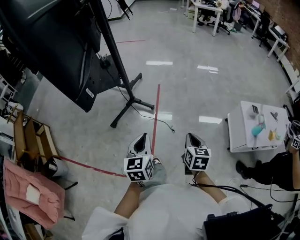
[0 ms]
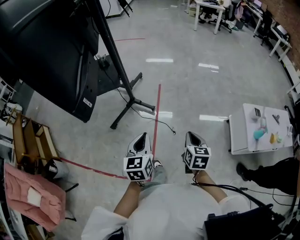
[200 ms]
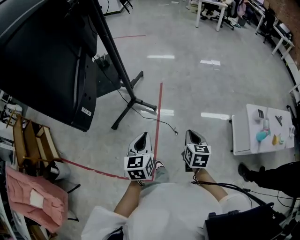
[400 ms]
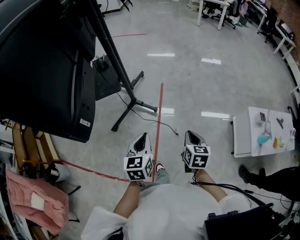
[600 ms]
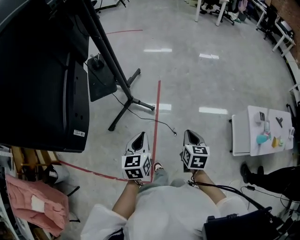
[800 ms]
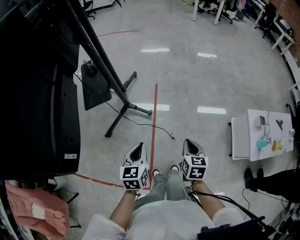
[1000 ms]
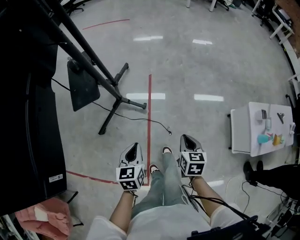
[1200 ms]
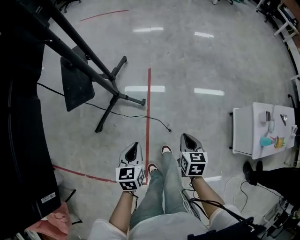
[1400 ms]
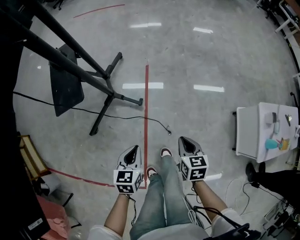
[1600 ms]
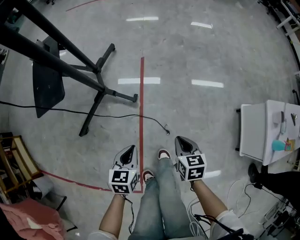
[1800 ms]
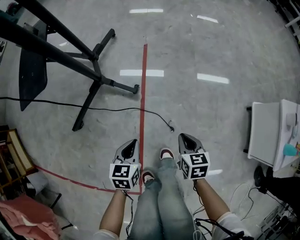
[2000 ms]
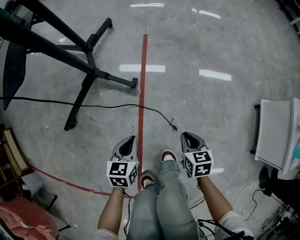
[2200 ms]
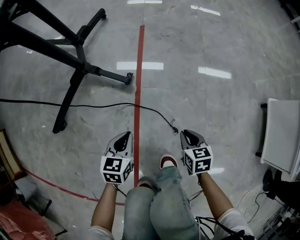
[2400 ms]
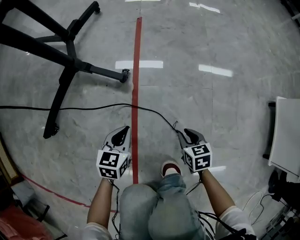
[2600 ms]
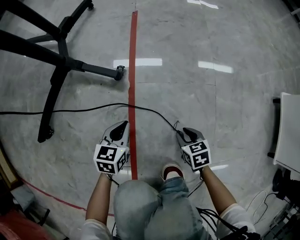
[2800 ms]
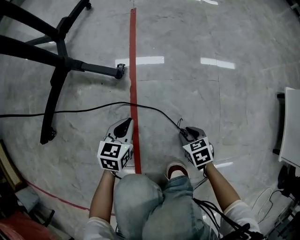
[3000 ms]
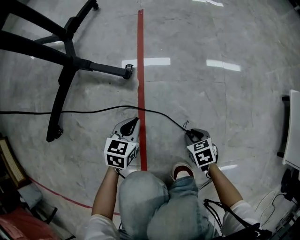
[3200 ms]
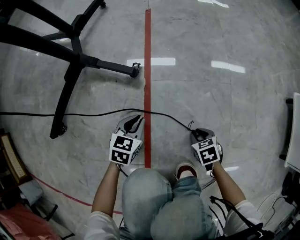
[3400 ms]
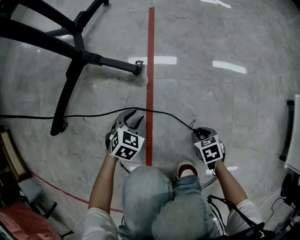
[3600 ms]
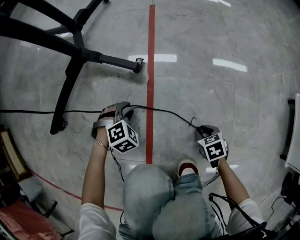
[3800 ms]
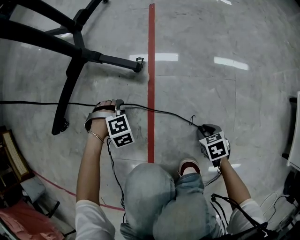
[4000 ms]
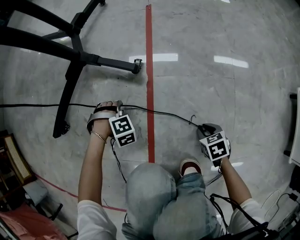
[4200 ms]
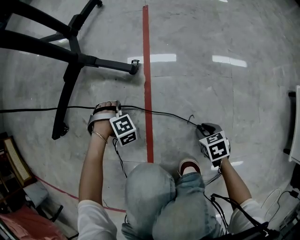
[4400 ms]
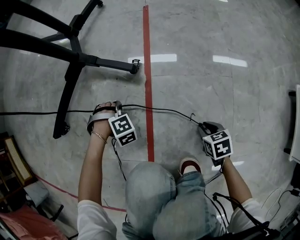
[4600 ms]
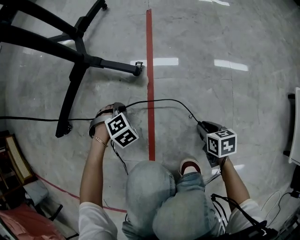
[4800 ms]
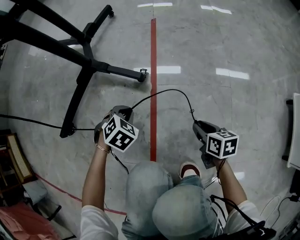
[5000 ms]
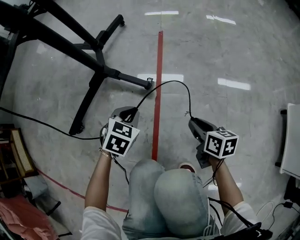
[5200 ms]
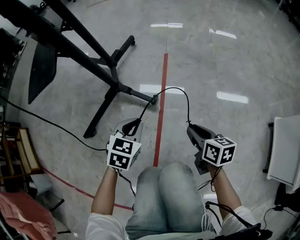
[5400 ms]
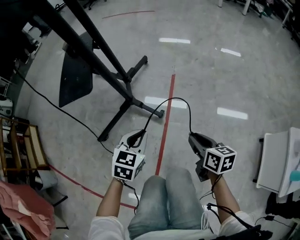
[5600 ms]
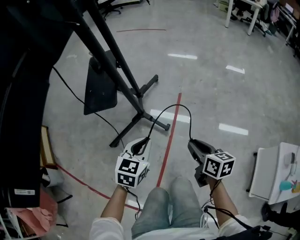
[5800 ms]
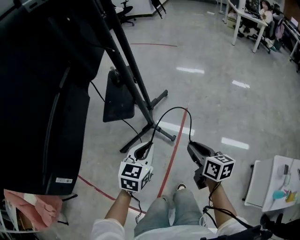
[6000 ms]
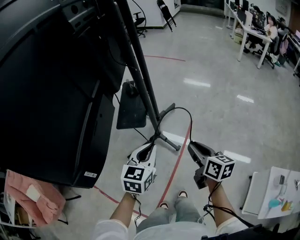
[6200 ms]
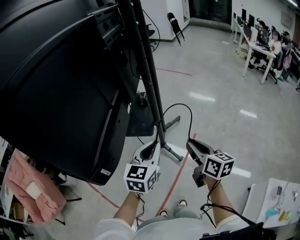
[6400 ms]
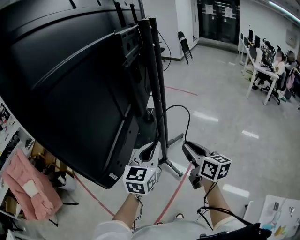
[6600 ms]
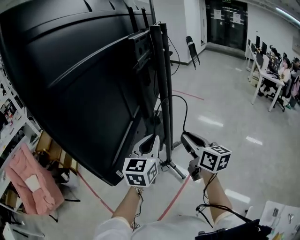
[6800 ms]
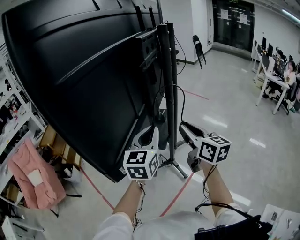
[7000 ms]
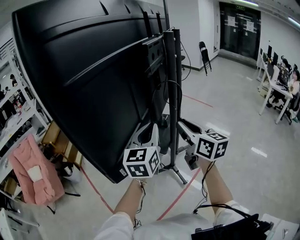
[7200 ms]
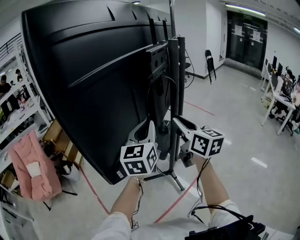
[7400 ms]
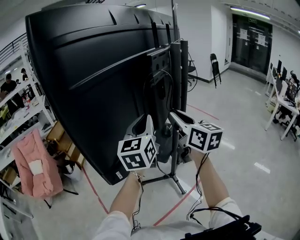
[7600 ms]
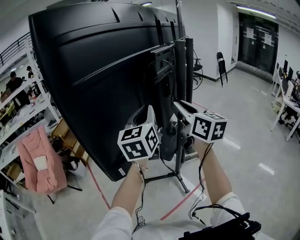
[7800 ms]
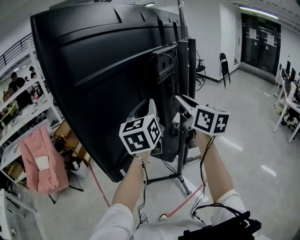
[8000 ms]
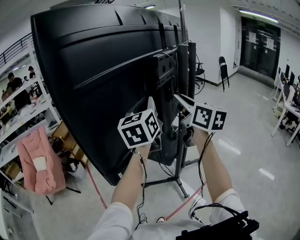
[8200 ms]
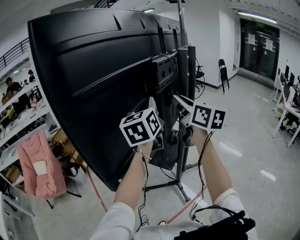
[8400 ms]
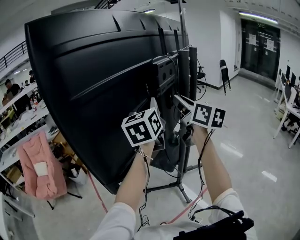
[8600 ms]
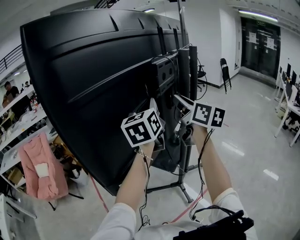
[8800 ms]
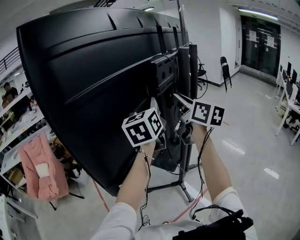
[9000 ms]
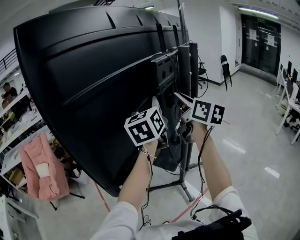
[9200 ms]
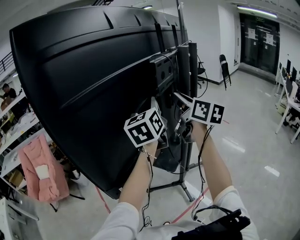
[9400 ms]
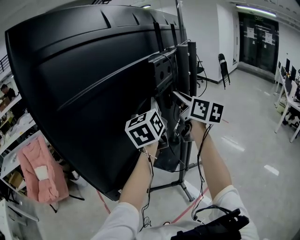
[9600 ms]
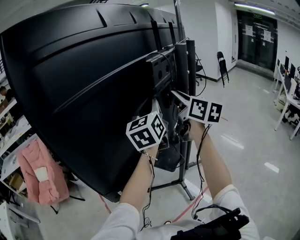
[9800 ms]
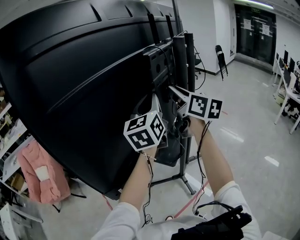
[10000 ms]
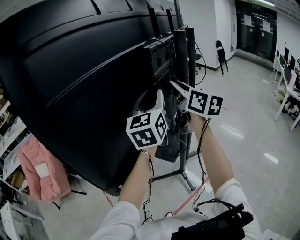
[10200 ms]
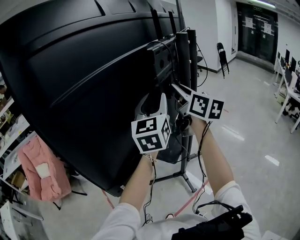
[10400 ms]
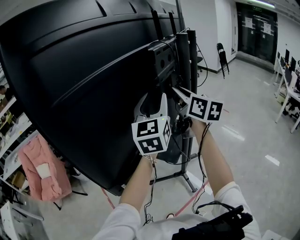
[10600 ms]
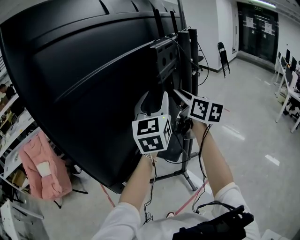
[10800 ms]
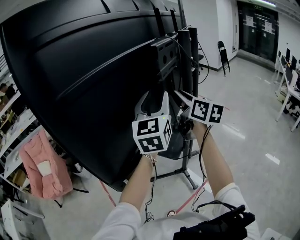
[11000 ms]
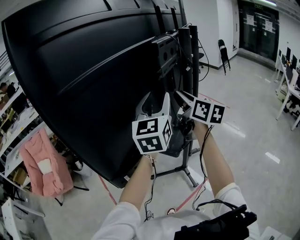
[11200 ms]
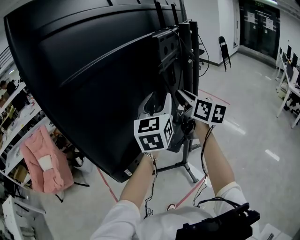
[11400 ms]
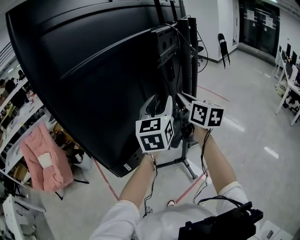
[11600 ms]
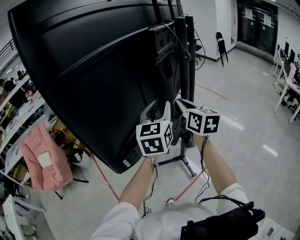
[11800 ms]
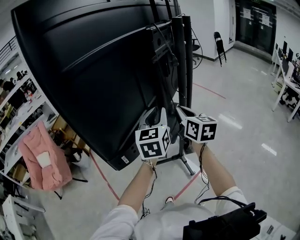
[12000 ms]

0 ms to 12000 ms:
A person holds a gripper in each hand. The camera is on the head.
0 ms to 1600 ms: Both grippers move forward and downward, approximately 40 cm. The left gripper changes its angle by about 20 degrees.
1600 ms to 3000 ms: The two grippers go some 60 cm downward. The right gripper rotates roughly 30 degrees, and opens up.
3000 ms to 4400 ms: The left gripper changes place by about 15 cm, twists roughly 70 degrees clockwise, seen from behind, and opens, then closes again.
4400 ms to 6000 ms: The two grippers go some 80 cm upward. The left gripper rotates around the line of its fingers by about 80 degrees, counterclockwise from behind, while the right gripper tips its fingers upward by approximately 40 degrees.
6000 ms to 7600 ms: Both grippers travel together upward, about 50 cm. The right gripper changes its angle by about 50 degrees. Meanwhile the left gripper angles its fingers upward, by some 30 degrees.
7600 ms to 9000 ms: The grippers both shift forward and upward by roughly 10 cm.
9000 ms to 10400 ms: The left gripper opens.
10400 ms to 12000 ms: Both grippers move downward and backward, roughly 15 cm.

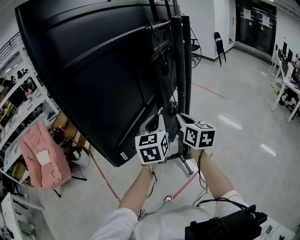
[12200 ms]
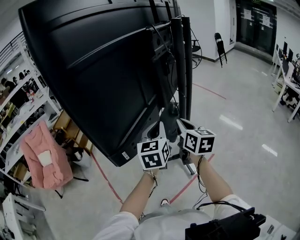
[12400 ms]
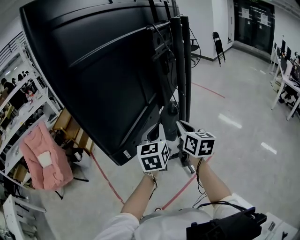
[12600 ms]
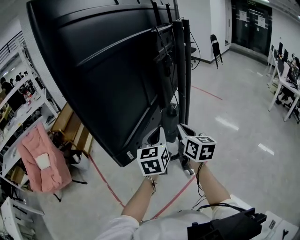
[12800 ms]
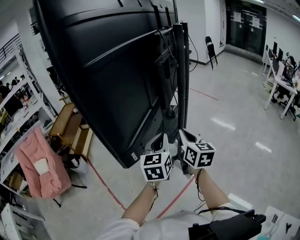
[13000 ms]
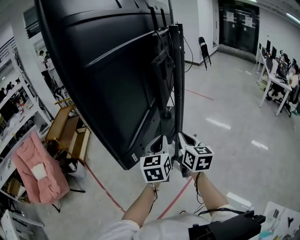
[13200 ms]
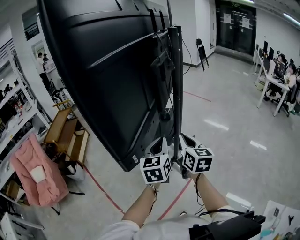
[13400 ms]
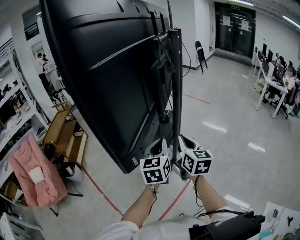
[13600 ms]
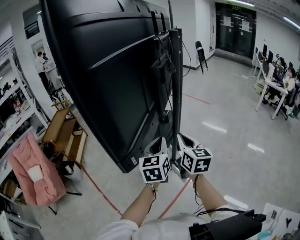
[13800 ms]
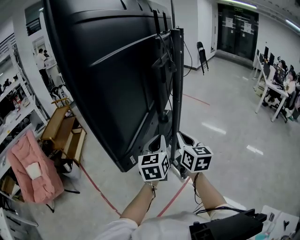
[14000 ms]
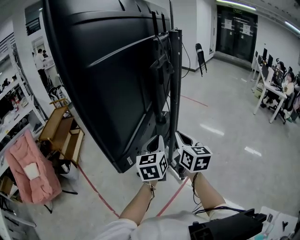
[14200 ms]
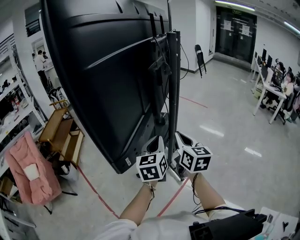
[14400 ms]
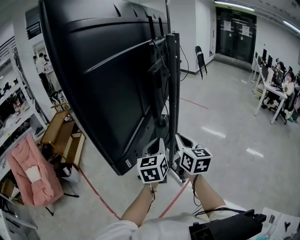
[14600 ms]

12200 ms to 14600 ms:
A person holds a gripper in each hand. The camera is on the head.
12200 ms to 13400 ms: The two grippers go approximately 10 cm backward.
13400 ms to 14600 ms: There are only small adjustments of the grippers.

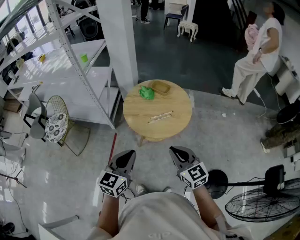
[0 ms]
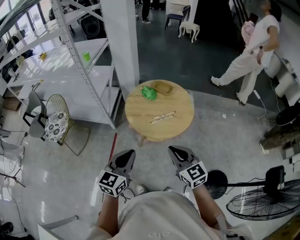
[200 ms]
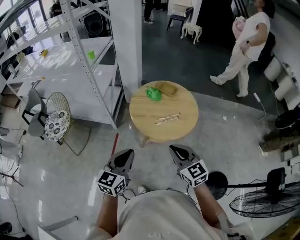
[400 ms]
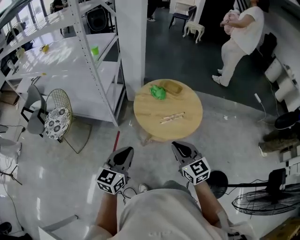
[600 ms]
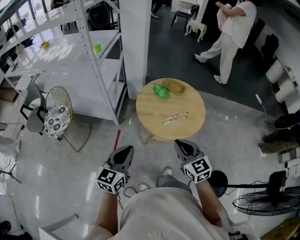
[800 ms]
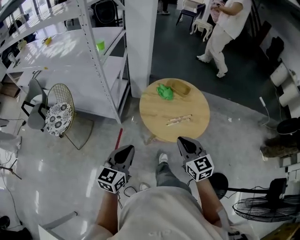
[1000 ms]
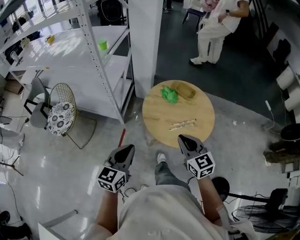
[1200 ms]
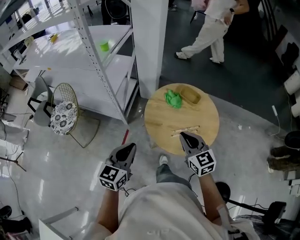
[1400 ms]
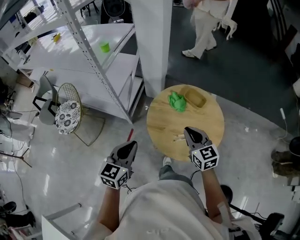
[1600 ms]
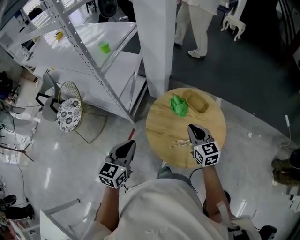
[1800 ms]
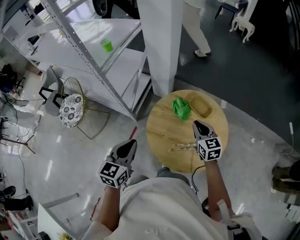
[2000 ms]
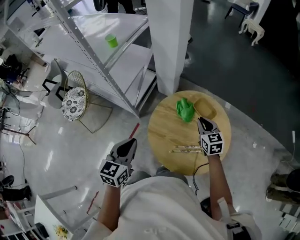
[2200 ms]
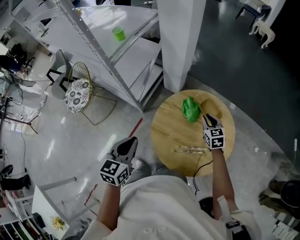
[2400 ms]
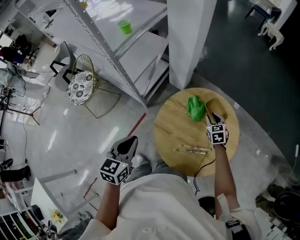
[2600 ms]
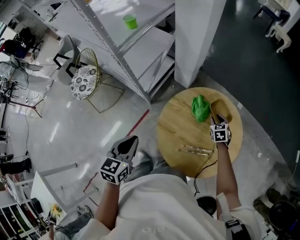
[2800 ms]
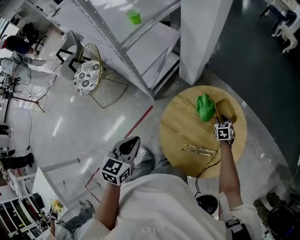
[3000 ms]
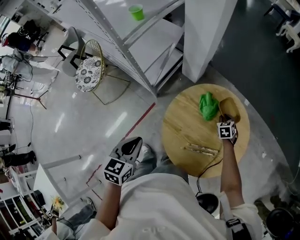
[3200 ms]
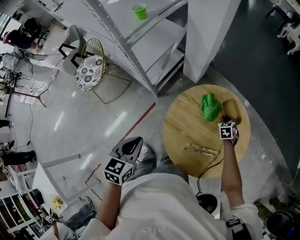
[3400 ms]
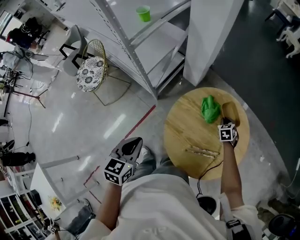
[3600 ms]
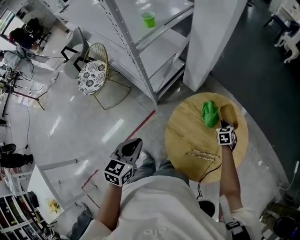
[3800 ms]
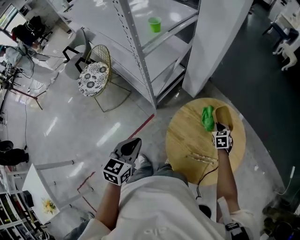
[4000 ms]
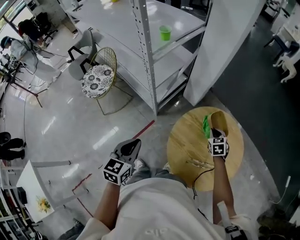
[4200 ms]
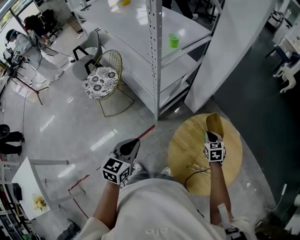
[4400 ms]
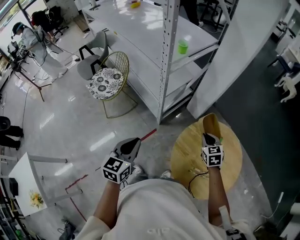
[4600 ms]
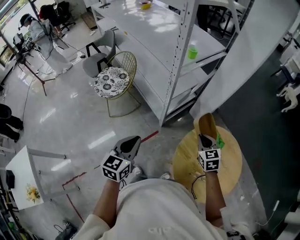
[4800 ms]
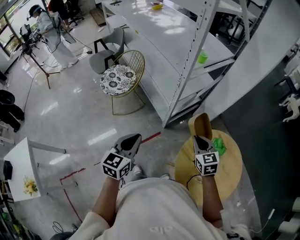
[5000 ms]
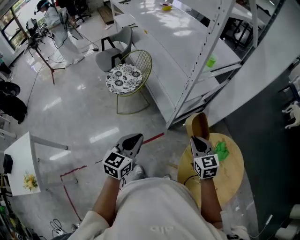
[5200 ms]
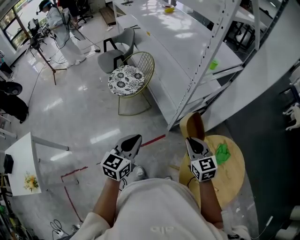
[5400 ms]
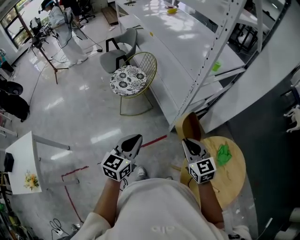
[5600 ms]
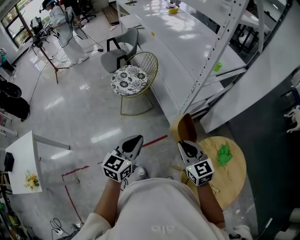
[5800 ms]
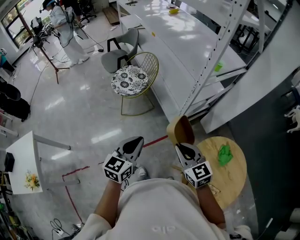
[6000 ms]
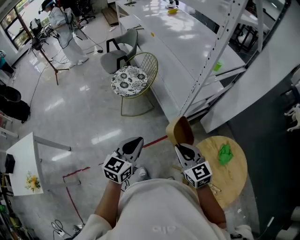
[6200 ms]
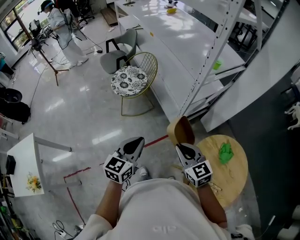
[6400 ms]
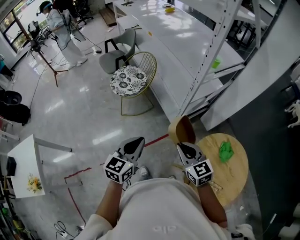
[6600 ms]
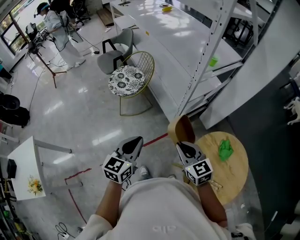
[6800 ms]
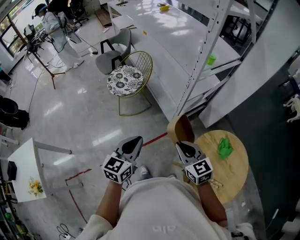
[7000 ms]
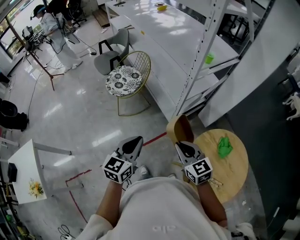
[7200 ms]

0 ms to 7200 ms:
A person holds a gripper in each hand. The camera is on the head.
0 ms to 1400 ms: Both grippers travel together forward and to the left, approximately 25 cm.
1400 ms to 2800 ms: The right gripper moves forward, downward and to the right, some 50 cm, tips its fingers downward by some 30 degrees, and opens up, while the left gripper goes some 15 cm forward and downward, and rotates approximately 30 degrees.
2800 ms to 4400 ms: The left gripper shifts about 15 cm to the left. The right gripper goes some 25 cm to the left and upward, and closes up.
4400 ms to 5800 ms: The left gripper ends up roughly 15 cm from where it was. The right gripper shifts by about 40 cm, and rotates some 40 degrees.
5800 ms to 7200 ms: There are only small adjustments of the grippers.

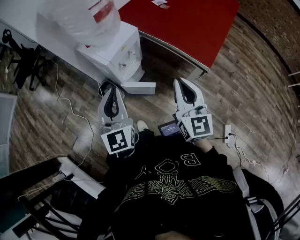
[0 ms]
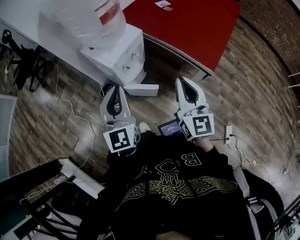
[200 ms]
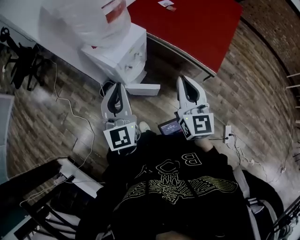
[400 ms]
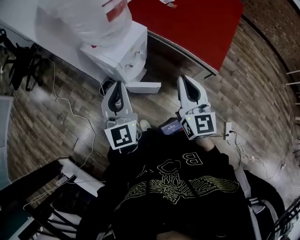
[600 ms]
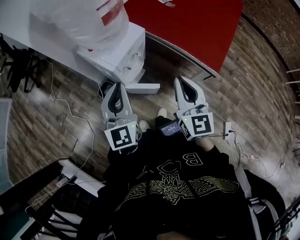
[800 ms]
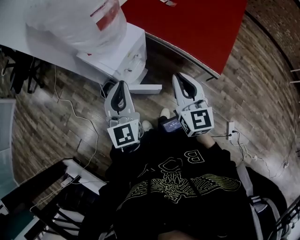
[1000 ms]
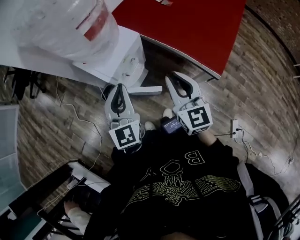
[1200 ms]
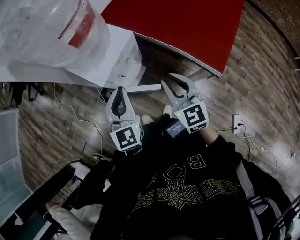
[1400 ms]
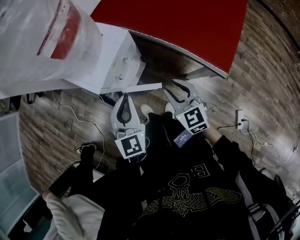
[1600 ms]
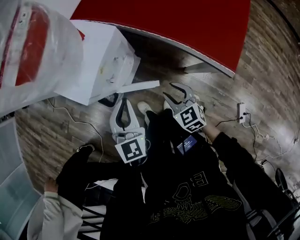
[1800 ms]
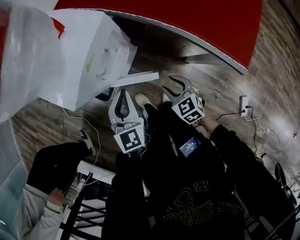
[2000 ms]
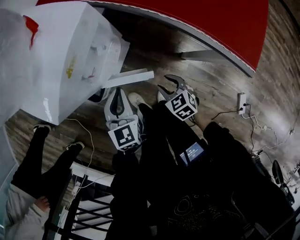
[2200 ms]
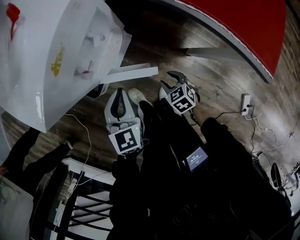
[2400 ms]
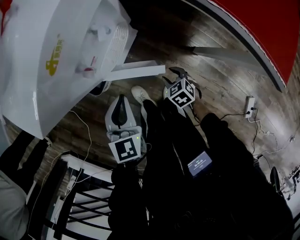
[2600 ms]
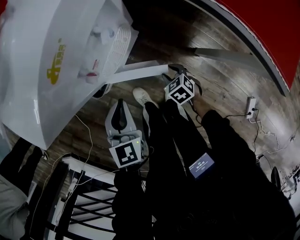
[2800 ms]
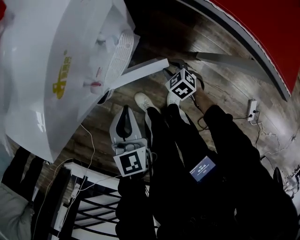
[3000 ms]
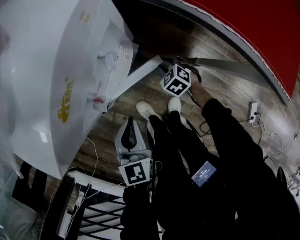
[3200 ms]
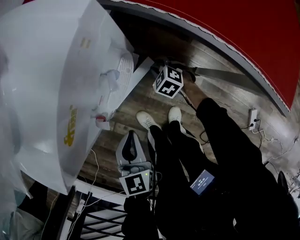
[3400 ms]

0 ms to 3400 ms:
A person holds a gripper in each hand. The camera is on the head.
0 ms to 1600 ms: The left gripper goes some 20 cm forward and downward. Meanwhile the right gripper goes roughly 25 cm downward and forward, turns by some 30 degrees, and opens up.
1600 ms to 3400 ms: The left gripper goes some 30 cm downward, and rotates some 20 degrees, while the right gripper moves downward and forward, some 50 cm, and angles its fingers downward, by approximately 30 degrees.
